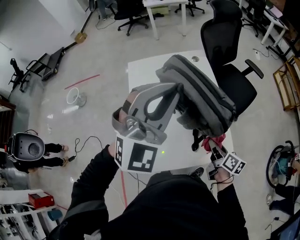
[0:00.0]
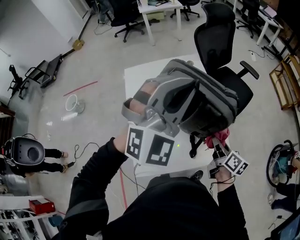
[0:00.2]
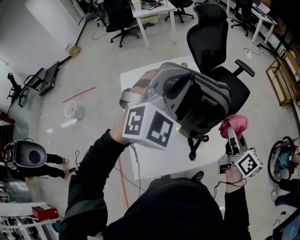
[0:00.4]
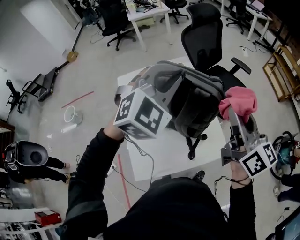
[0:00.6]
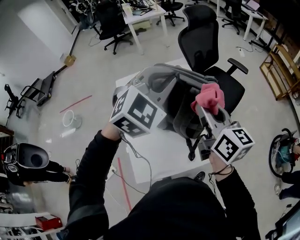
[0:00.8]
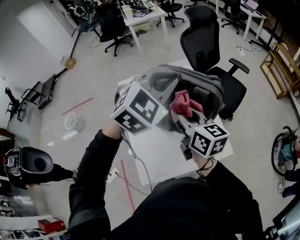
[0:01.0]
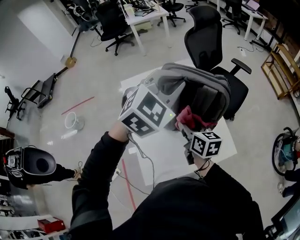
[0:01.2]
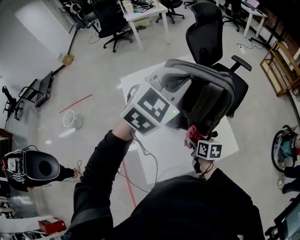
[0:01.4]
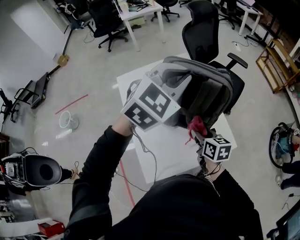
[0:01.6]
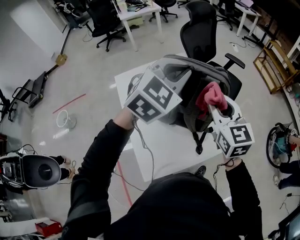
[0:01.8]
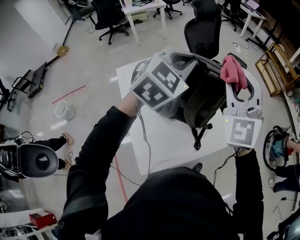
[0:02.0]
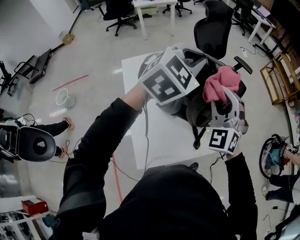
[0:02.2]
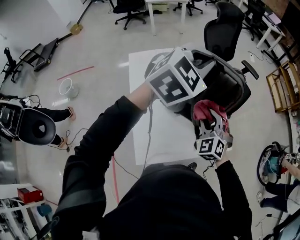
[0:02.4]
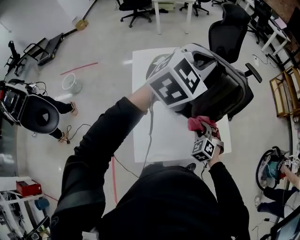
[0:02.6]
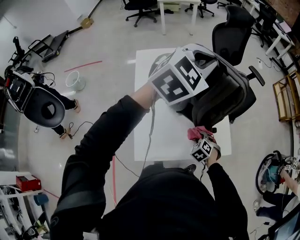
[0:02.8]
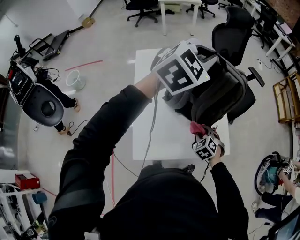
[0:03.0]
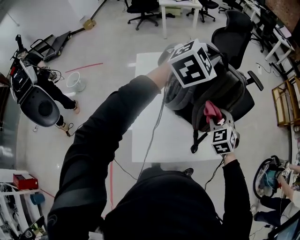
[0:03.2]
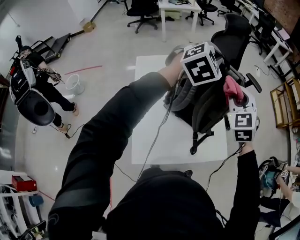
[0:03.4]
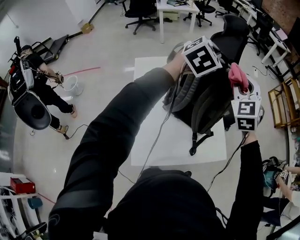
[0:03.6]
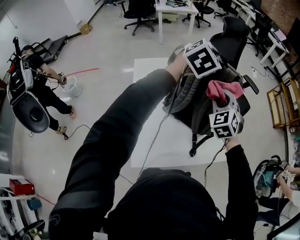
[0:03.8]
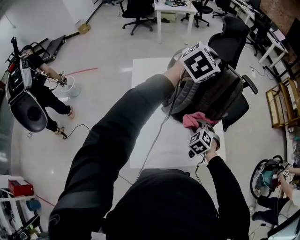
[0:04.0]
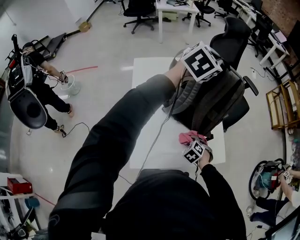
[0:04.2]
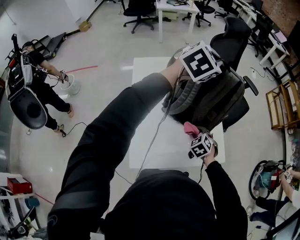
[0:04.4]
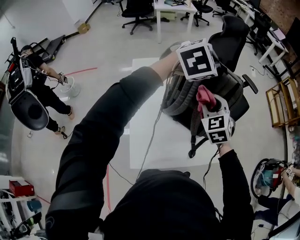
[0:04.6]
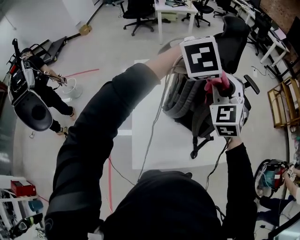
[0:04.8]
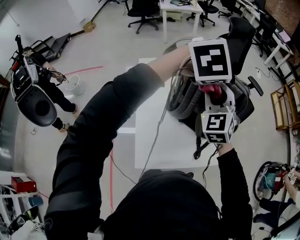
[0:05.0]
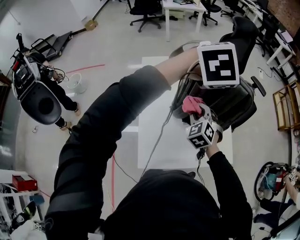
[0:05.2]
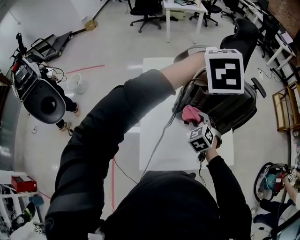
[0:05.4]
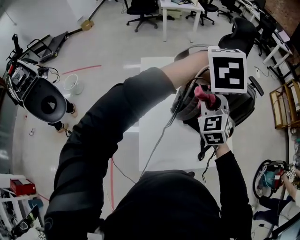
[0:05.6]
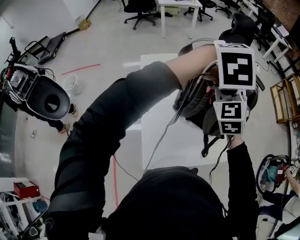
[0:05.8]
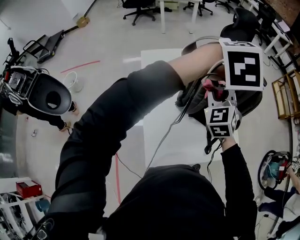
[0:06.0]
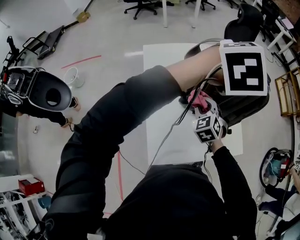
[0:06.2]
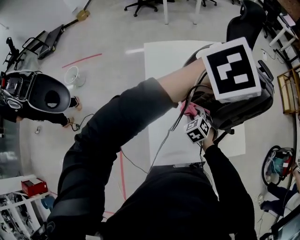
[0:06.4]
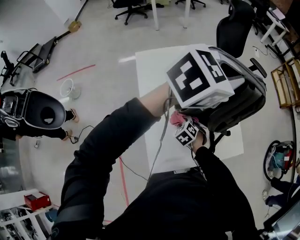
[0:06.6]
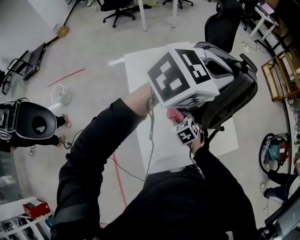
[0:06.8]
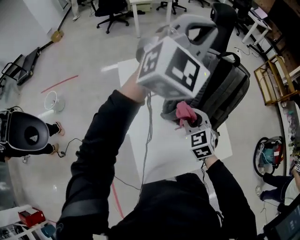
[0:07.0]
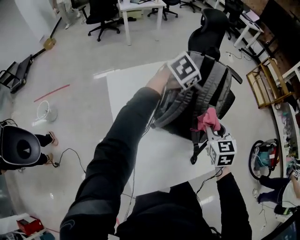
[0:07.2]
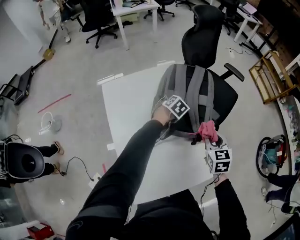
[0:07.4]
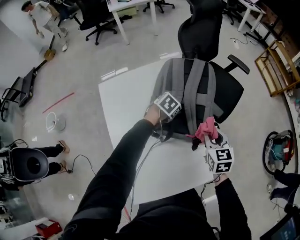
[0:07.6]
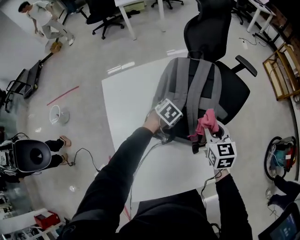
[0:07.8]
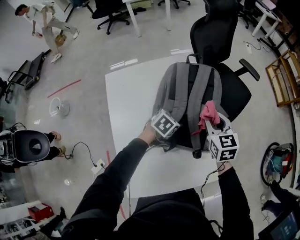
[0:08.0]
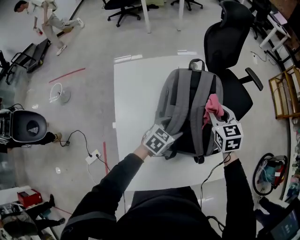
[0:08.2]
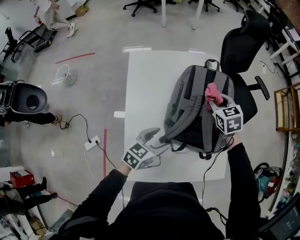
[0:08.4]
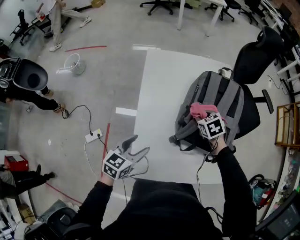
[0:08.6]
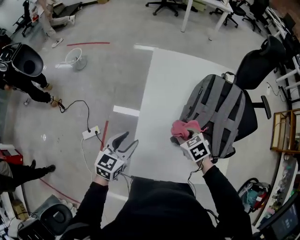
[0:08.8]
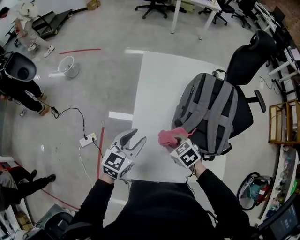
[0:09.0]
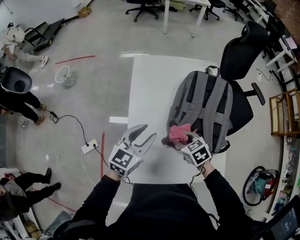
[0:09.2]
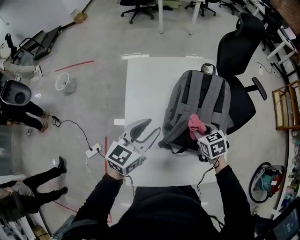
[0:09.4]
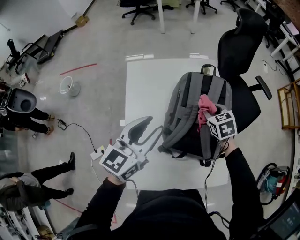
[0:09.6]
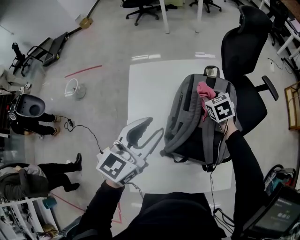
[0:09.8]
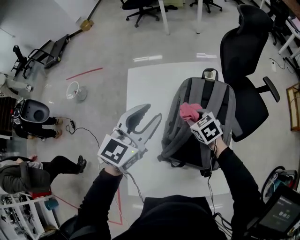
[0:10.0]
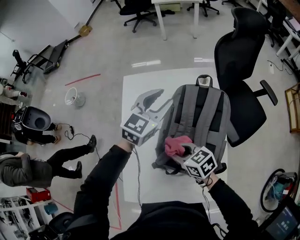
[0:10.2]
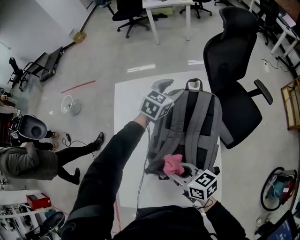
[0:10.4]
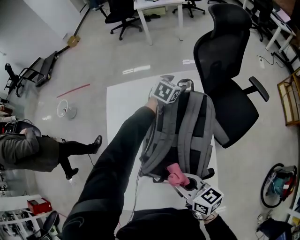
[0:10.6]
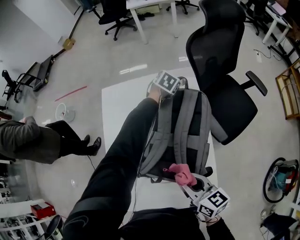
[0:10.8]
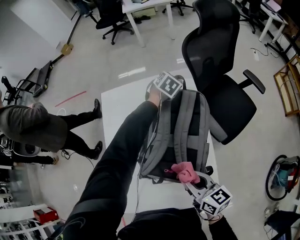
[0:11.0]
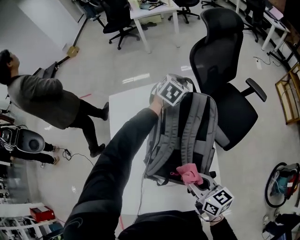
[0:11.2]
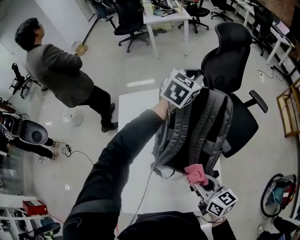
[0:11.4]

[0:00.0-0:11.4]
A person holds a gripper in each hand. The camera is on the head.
0:00.0 to 0:01.4: The left gripper is displaced forward by some 5 cm, and changes its angle by approximately 30 degrees, while the right gripper is displaced to the left by some 10 cm, and reaches about 30 cm upward, then returns.
0:01.4 to 0:02.8: The right gripper shifts about 10 cm backward, reaches some 40 cm upward, then returns, and twists about 70 degrees counterclockwise, seen from behind.
0:02.8 to 0:04.2: The right gripper heads forward, covering roughly 5 cm, and goes upward and returns, about 40 cm each way; the left gripper travels forward by about 15 cm.
0:04.2 to 0:05.6: The right gripper moves up and down over approximately 40 cm, changing direction 2 times, and tilts its fingers approximately 40 degrees upward. The left gripper travels backward by about 10 cm, and swivels about 30 degrees.
0:05.6 to 0:07.2: The left gripper goes approximately 25 cm forward and downward, rotates some 30 degrees, and opens, while the right gripper moves up and down over some 40 cm, changing direction 2 times, and rotates some 30 degrees.
0:07.2 to 0:08.6: The right gripper goes up and down, about 15 cm each way, reversing 2 times, and turns by about 50 degrees. The left gripper changes place by approximately 40 cm, and rotates around the line of its fingers by some 40 degrees, counterclockwise from behind.
0:08.6 to 0:10.0: The left gripper changes place by about 30 cm, rotates roughly 30 degrees, and closes.
0:10.0 to 0:11.4: The left gripper shifts some 35 cm to the right and forward, and closes up, while the right gripper goes some 25 cm backward, to the right and upward, and tilts its fingers approximately 30 degrees upward.

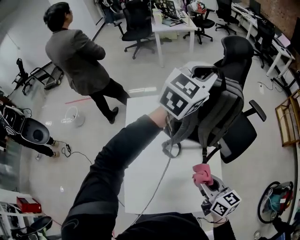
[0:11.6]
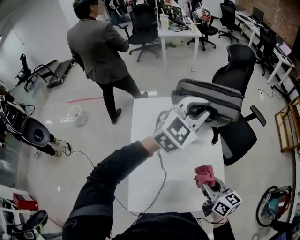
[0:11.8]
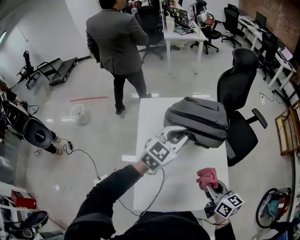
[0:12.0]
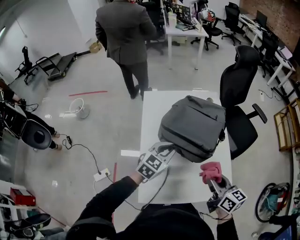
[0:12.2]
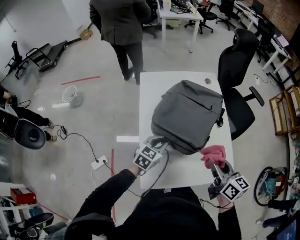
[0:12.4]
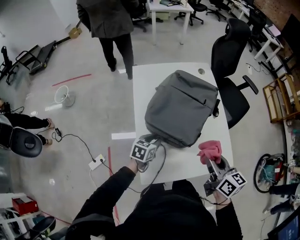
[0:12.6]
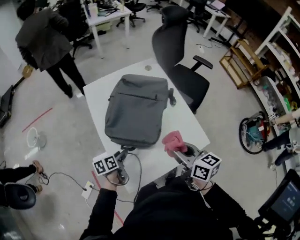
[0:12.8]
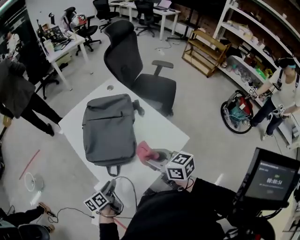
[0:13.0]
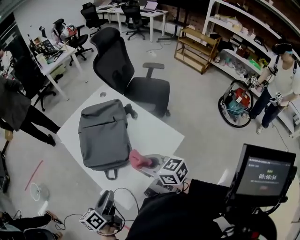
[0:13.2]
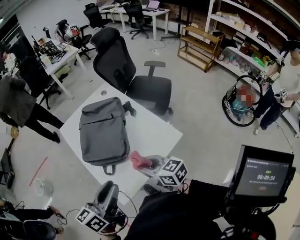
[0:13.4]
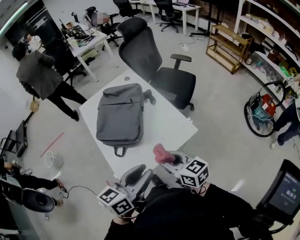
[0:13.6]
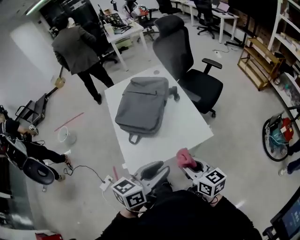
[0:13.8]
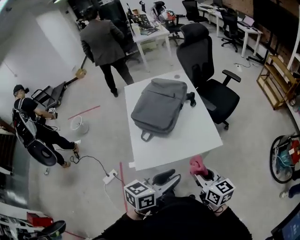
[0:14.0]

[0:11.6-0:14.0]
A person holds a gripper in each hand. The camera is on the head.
0:11.6 to 0:12.8: The right gripper travels to the left and backward by about 20 cm. The left gripper moves downward, backward and to the left, roughly 70 cm, twists approximately 70 degrees counterclockwise, seen from behind, and opens up.
0:12.8 to 0:14.0: The left gripper goes about 50 cm to the right, backward and upward, and changes its angle by approximately 40 degrees, while the right gripper travels backward and to the right by some 35 cm.

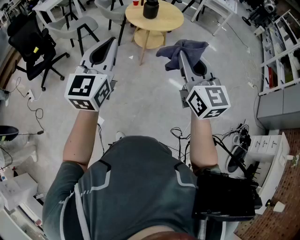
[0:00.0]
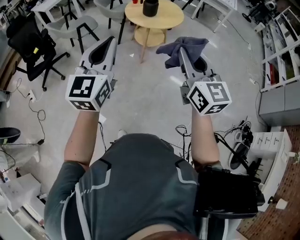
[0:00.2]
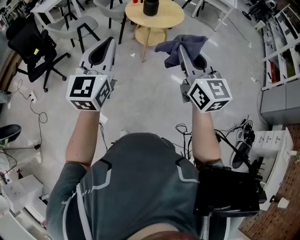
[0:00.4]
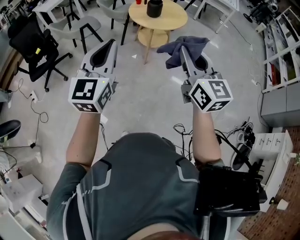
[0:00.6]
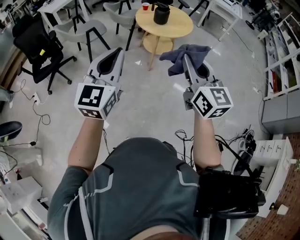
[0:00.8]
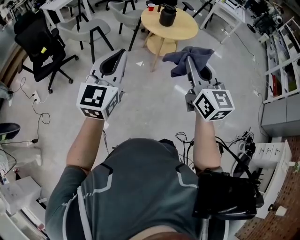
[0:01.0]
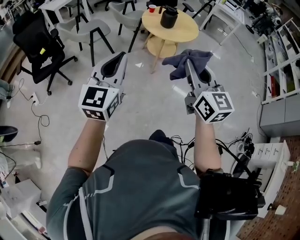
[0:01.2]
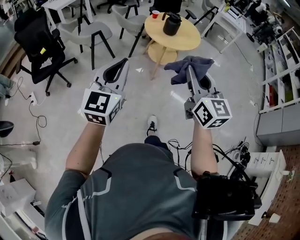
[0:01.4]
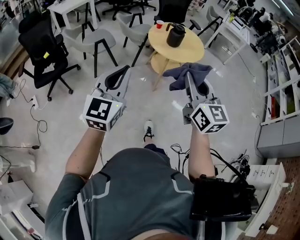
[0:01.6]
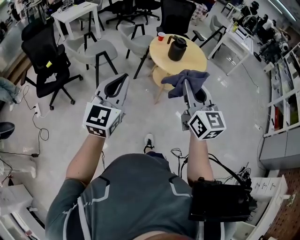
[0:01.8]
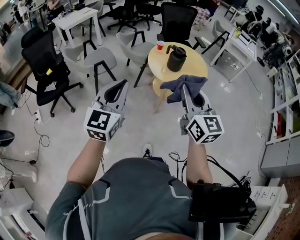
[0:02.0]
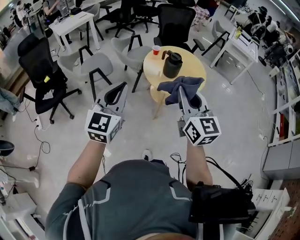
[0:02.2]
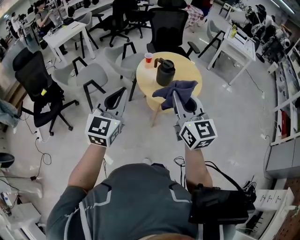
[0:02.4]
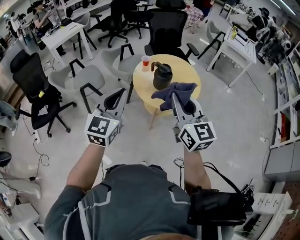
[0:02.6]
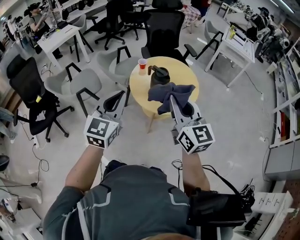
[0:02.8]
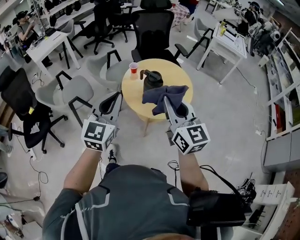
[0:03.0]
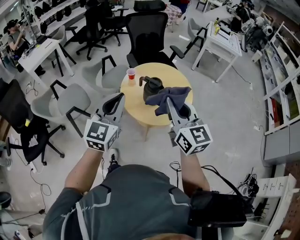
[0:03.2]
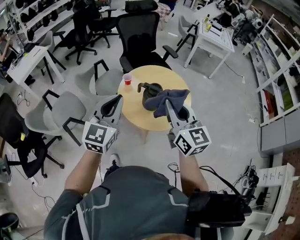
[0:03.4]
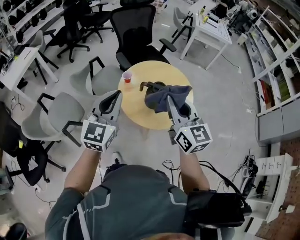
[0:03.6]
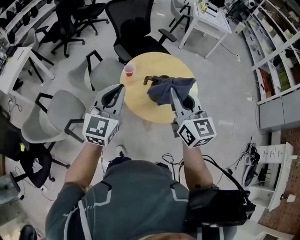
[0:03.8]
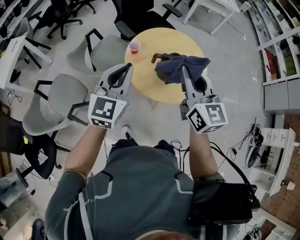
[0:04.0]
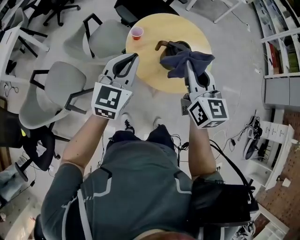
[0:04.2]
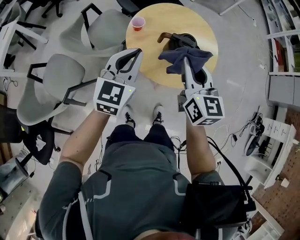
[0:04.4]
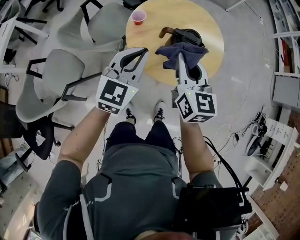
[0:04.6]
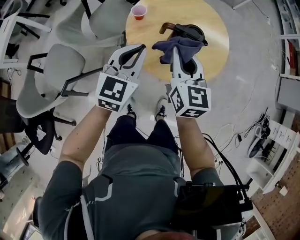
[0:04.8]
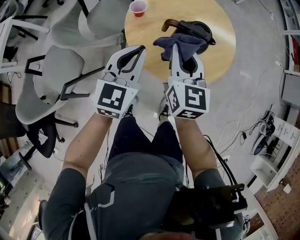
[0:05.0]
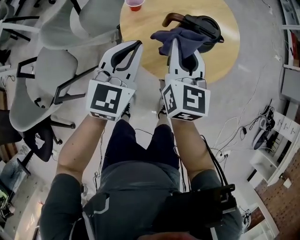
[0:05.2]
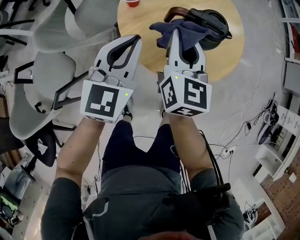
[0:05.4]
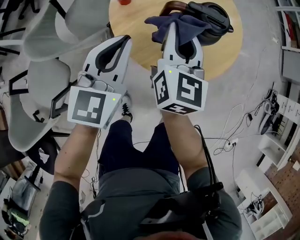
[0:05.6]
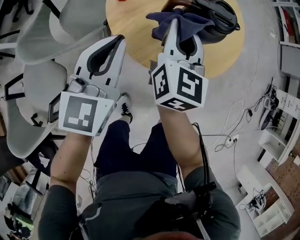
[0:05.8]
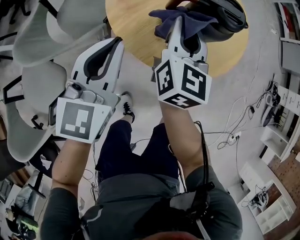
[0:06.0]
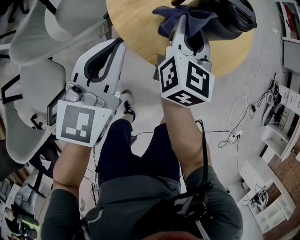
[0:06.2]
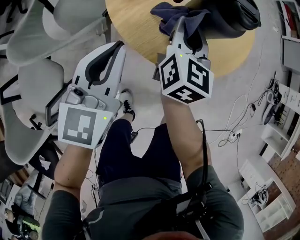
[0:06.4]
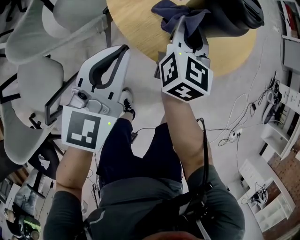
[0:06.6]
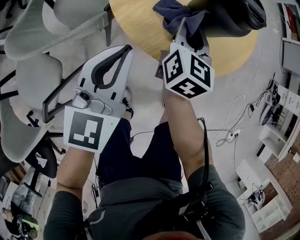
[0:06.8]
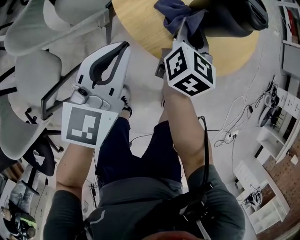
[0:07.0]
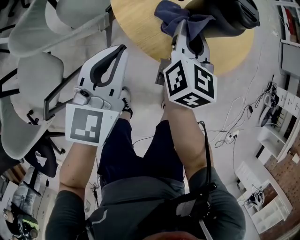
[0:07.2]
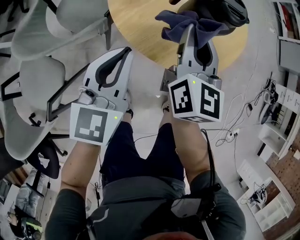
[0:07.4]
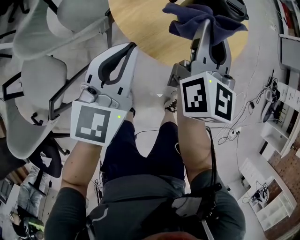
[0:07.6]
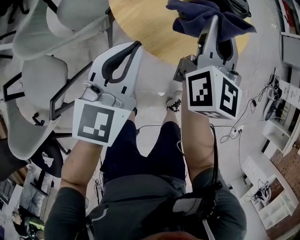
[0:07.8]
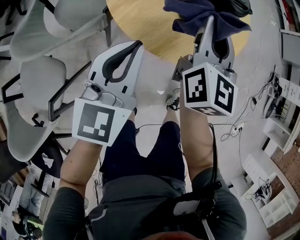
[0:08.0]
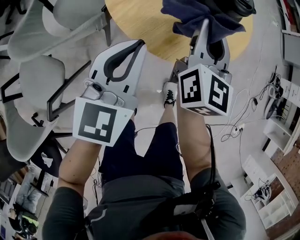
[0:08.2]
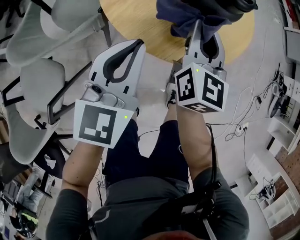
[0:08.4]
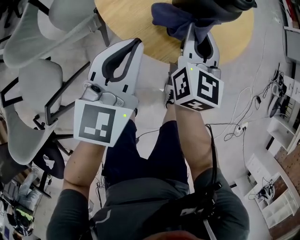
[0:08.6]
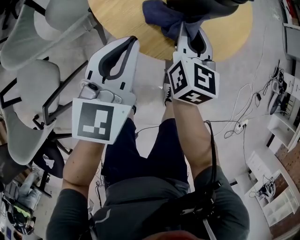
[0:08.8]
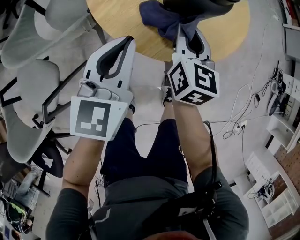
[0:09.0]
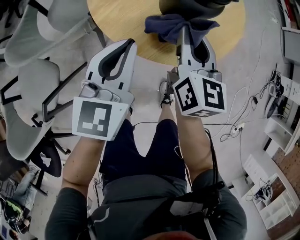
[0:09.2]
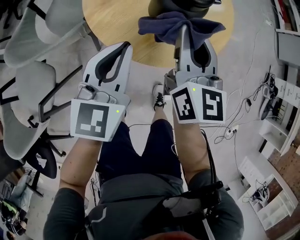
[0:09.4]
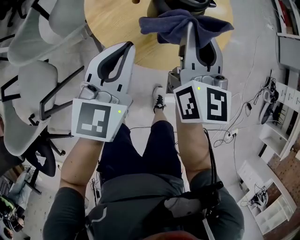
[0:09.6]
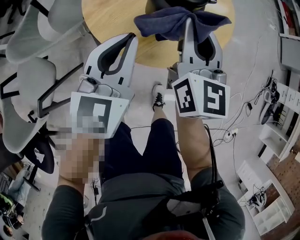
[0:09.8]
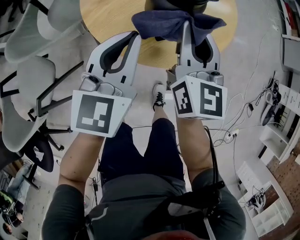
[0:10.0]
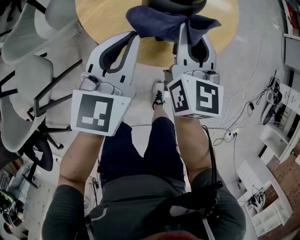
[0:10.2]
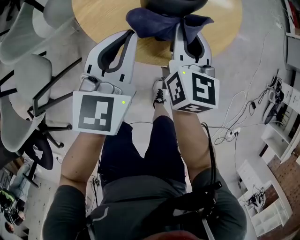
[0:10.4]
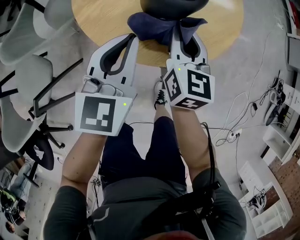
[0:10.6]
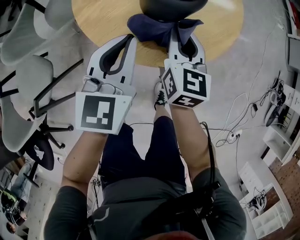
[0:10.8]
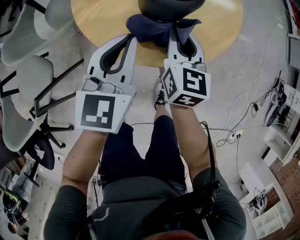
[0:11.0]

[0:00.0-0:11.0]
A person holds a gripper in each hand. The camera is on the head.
0:00.0 to 0:01.6: The right gripper shifts roughly 20 cm forward and to the left. Meanwhile the left gripper is displaced to the left and forward by about 20 cm.
0:01.6 to 0:03.2: The two grippers travel together, forward, approximately 50 cm.
0:03.2 to 0:04.8: The left gripper travels forward, downward and to the left by approximately 30 cm, and swivels about 20 degrees. Meanwhile the right gripper is displaced downward, forward and to the left by about 30 cm, and rotates roughly 30 degrees.
0:04.8 to 0:06.2: The left gripper moves downward and to the left, approximately 15 cm. Meanwhile the right gripper heads downward, covering about 15 cm, and changes its angle by about 30 degrees.
0:06.2 to 0:07.8: The right gripper goes roughly 10 cm upward.
0:07.8 to 0:09.4: The left gripper is displaced to the right by approximately 5 cm. The right gripper reaches roughly 15 cm downward, then returns.
0:09.4 to 0:11.0: The left gripper moves roughly 5 cm. Meanwhile the right gripper travels downward by approximately 15 cm.
